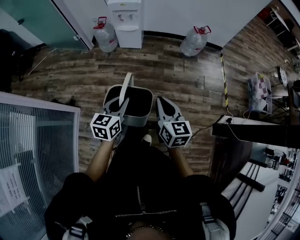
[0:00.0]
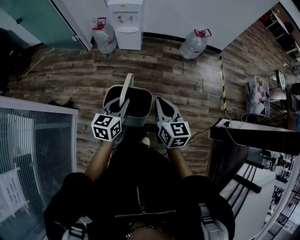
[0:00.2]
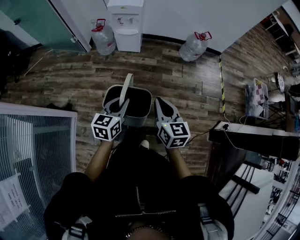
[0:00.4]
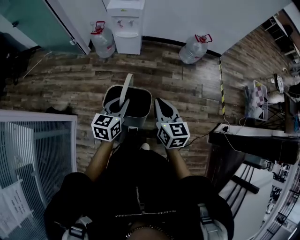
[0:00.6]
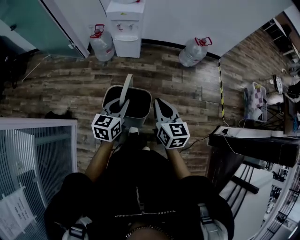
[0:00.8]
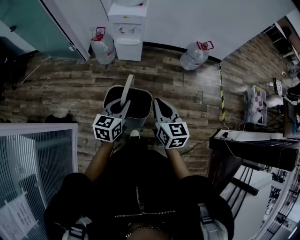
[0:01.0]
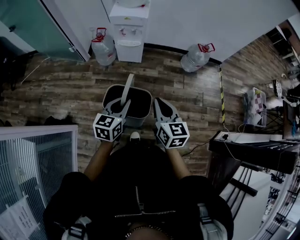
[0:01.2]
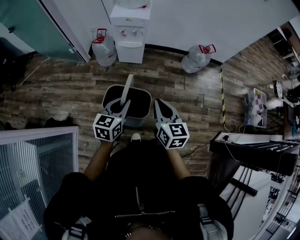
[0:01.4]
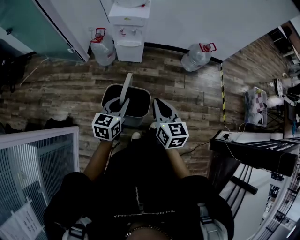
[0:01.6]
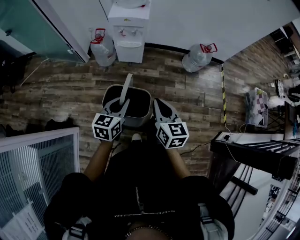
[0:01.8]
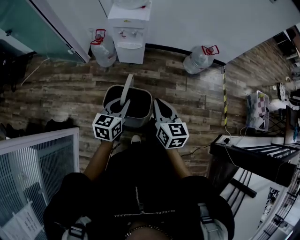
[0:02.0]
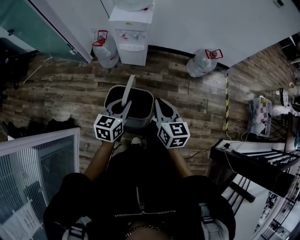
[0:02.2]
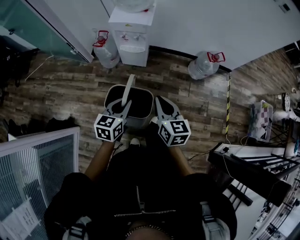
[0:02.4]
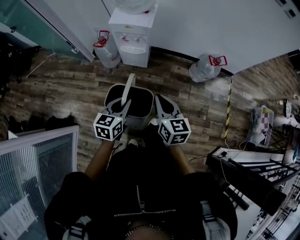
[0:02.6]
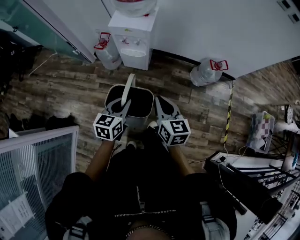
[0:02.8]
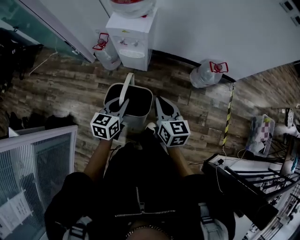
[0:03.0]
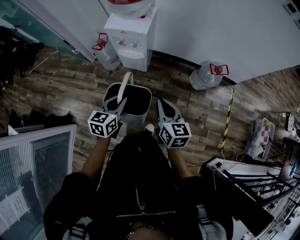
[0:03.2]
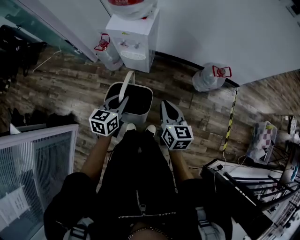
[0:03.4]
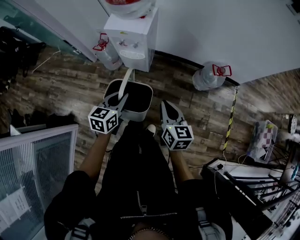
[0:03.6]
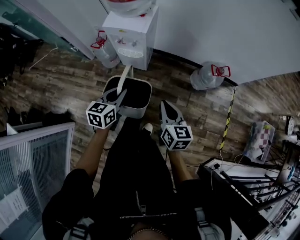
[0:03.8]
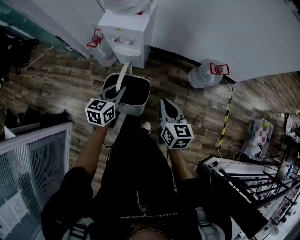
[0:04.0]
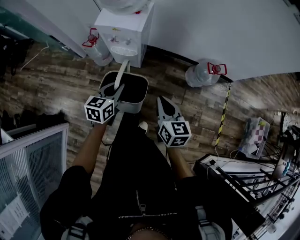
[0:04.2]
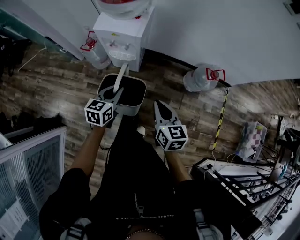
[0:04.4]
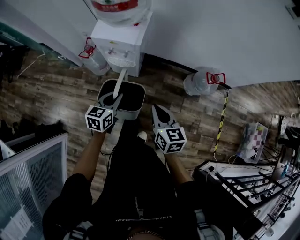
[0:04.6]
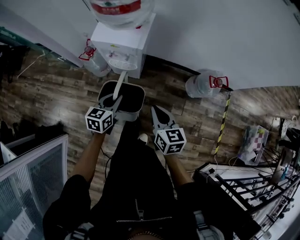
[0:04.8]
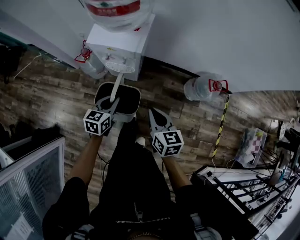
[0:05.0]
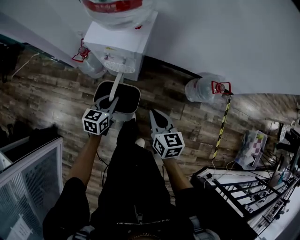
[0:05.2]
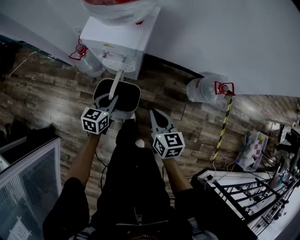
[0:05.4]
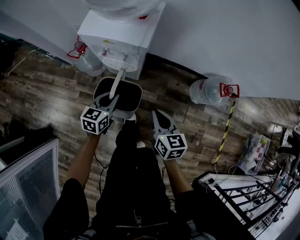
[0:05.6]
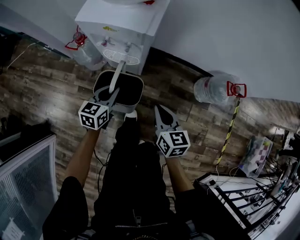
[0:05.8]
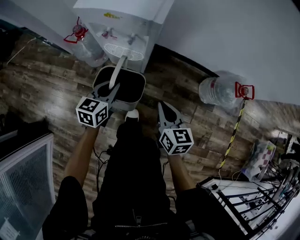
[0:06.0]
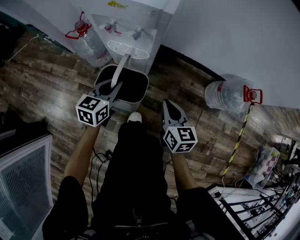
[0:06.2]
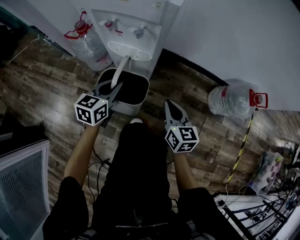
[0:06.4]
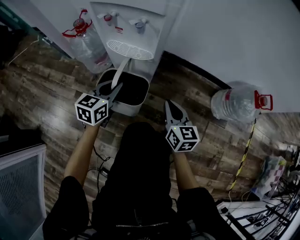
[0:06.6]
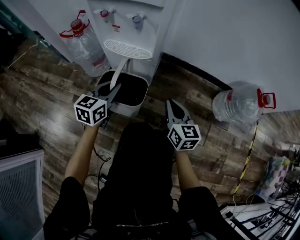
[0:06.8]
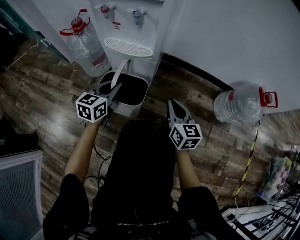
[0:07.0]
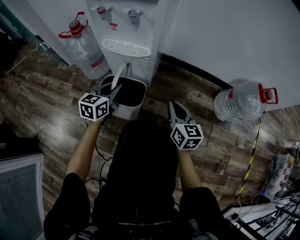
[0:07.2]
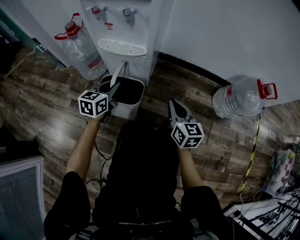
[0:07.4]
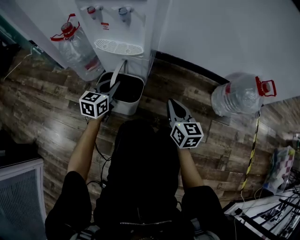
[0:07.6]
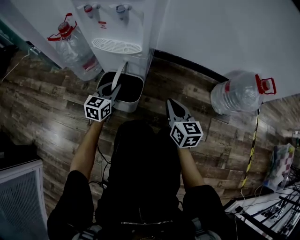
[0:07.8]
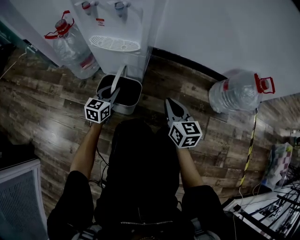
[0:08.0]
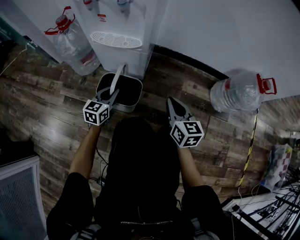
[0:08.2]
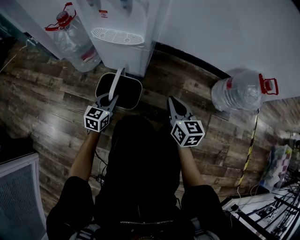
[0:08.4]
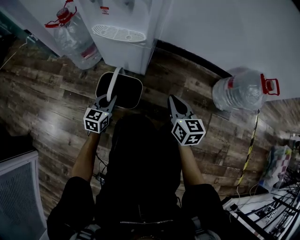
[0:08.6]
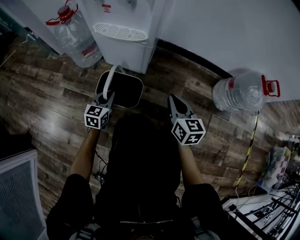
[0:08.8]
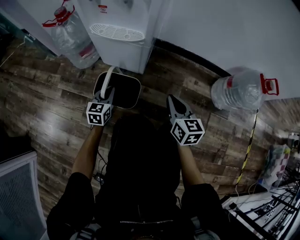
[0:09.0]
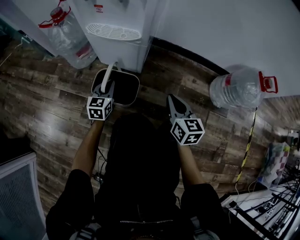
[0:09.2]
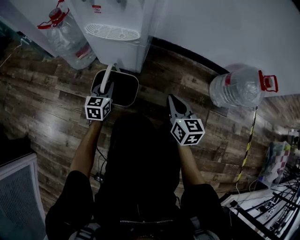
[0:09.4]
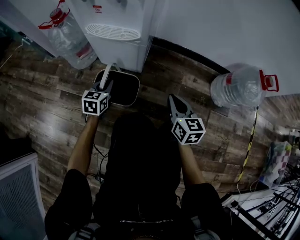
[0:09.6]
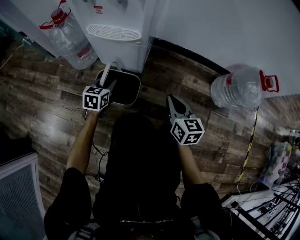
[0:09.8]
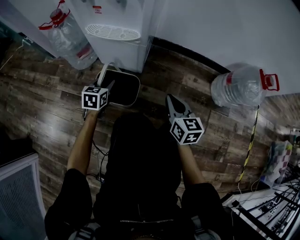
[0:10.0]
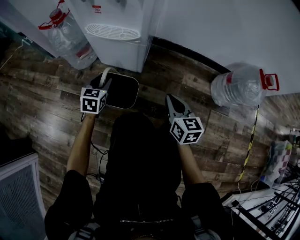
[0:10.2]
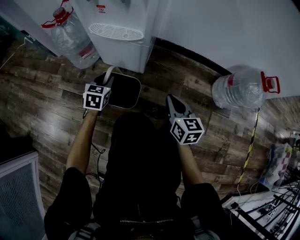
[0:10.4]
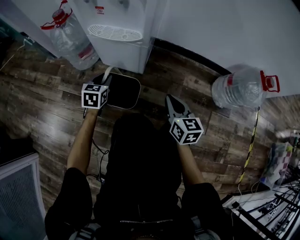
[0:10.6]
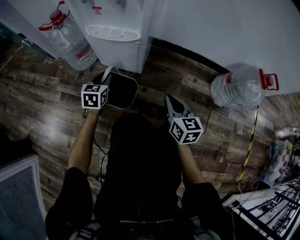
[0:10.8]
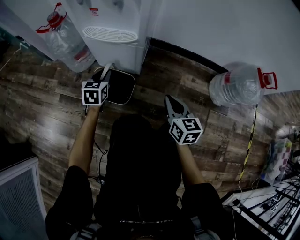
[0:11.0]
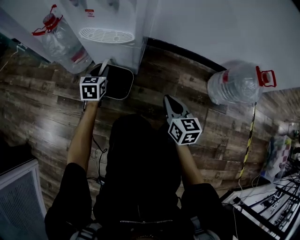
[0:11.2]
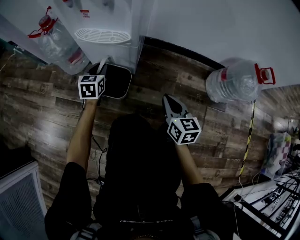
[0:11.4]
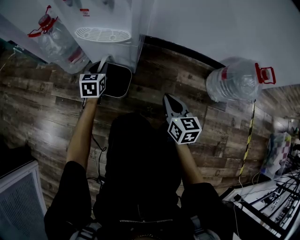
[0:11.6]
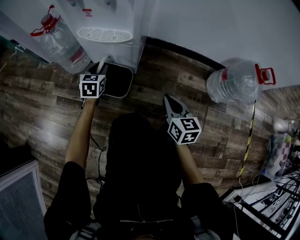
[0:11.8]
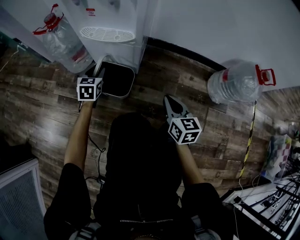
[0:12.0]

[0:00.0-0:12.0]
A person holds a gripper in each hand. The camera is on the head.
0:00.0 to 0:01.6: The grippers both shift forward and to the left by about 25 cm.
0:01.6 to 0:03.0: Both grippers travel together forward and to the right, approximately 20 cm.
0:03.0 to 0:04.4: The left gripper goes some 15 cm forward and downward. Meanwhile the right gripper heads forward, covering approximately 10 cm.
0:04.4 to 0:06.0: The two grippers go approximately 30 cm downward and forward.
0:06.0 to 0:07.6: Both grippers travel together downward, some 25 cm.
0:07.6 to 0:09.0: The left gripper goes some 10 cm downward.
0:09.0 to 0:10.4: The left gripper changes place by roughly 5 cm, and opens.
0:10.4 to 0:12.0: The left gripper is displaced forward by some 5 cm.

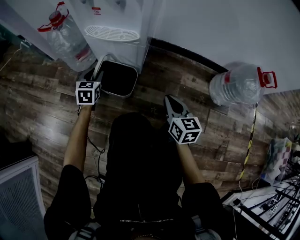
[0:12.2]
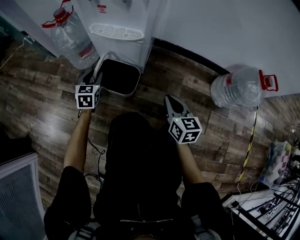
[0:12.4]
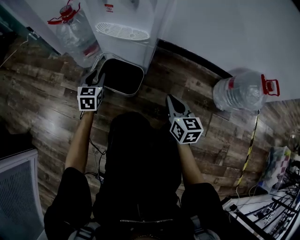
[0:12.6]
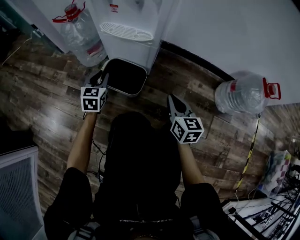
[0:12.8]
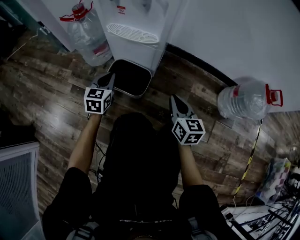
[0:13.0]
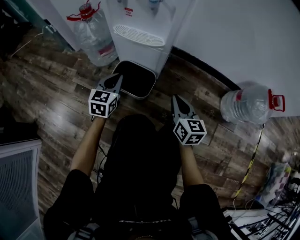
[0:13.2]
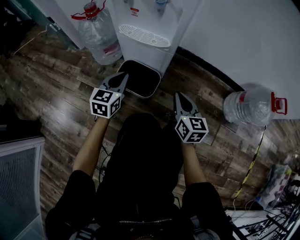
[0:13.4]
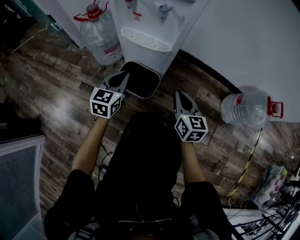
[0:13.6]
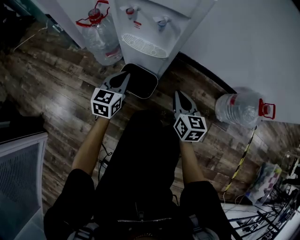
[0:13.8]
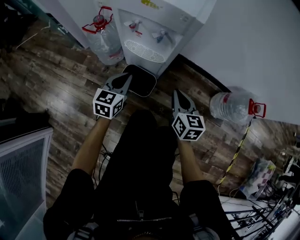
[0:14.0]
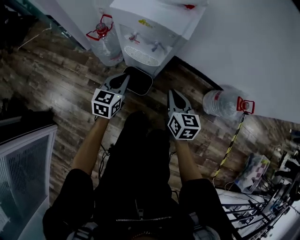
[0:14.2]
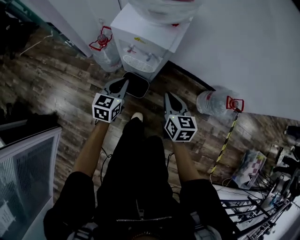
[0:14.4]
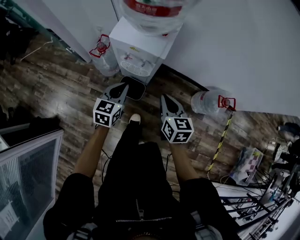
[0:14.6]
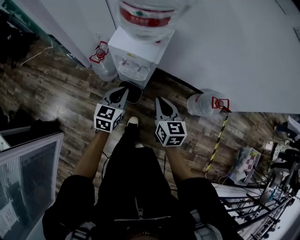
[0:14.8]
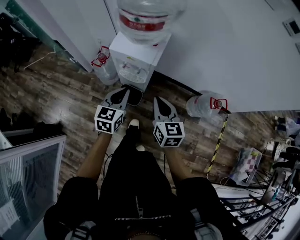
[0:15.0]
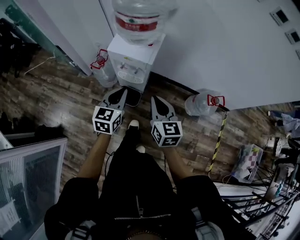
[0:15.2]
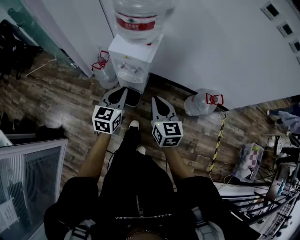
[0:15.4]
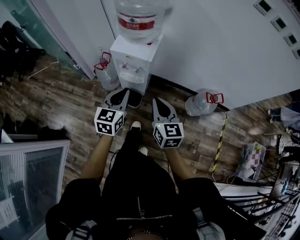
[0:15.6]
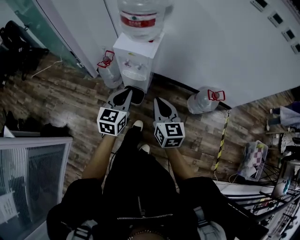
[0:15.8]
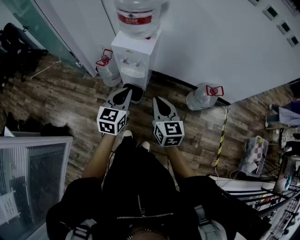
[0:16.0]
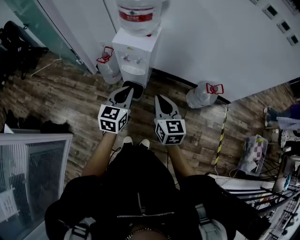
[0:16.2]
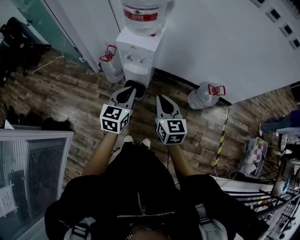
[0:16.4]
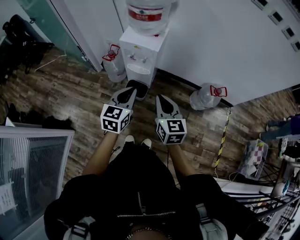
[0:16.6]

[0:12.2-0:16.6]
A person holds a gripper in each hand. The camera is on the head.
0:12.2 to 0:13.6: The left gripper travels upward and backward by some 15 cm, and closes up. Meanwhile the right gripper is displaced upward, forward and to the left by about 10 cm.
0:13.6 to 0:15.2: The grippers both shift upward by about 50 cm.
0:15.2 to 0:16.6: The grippers both shift backward by roughly 15 cm.

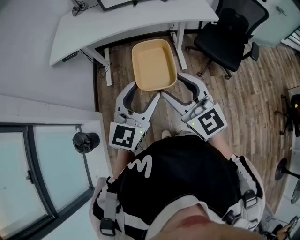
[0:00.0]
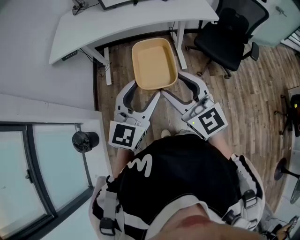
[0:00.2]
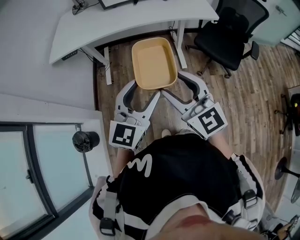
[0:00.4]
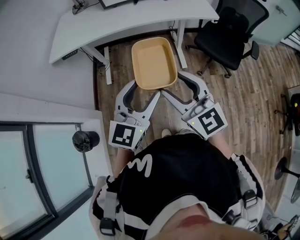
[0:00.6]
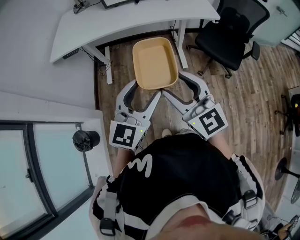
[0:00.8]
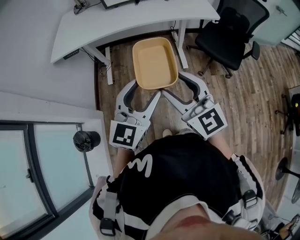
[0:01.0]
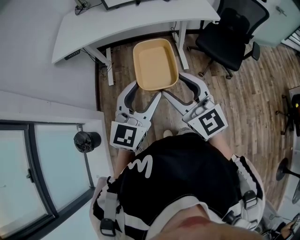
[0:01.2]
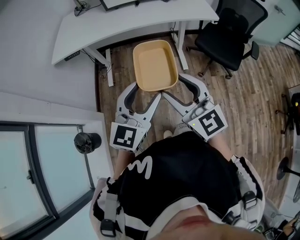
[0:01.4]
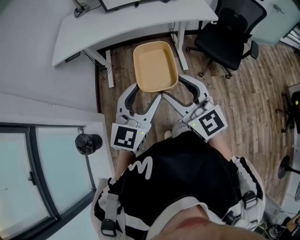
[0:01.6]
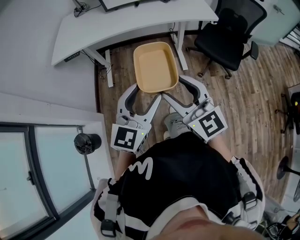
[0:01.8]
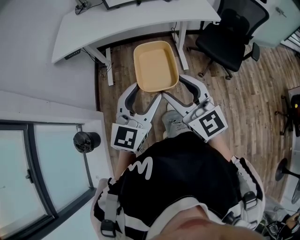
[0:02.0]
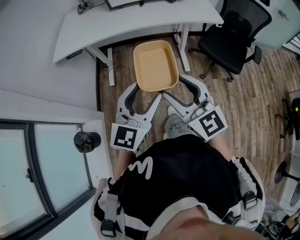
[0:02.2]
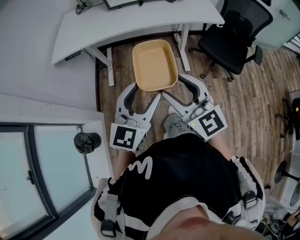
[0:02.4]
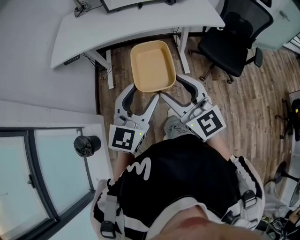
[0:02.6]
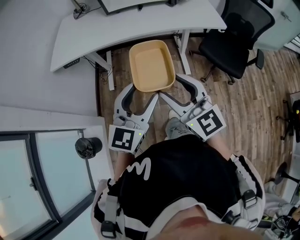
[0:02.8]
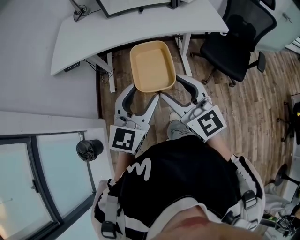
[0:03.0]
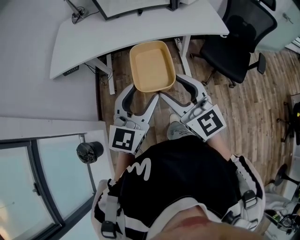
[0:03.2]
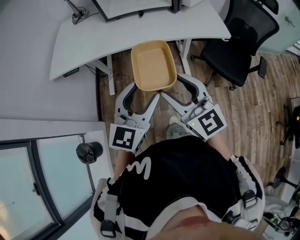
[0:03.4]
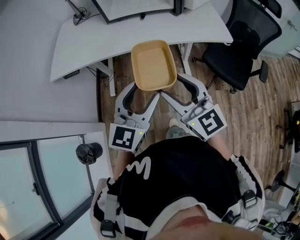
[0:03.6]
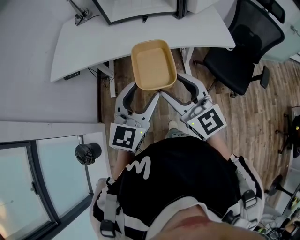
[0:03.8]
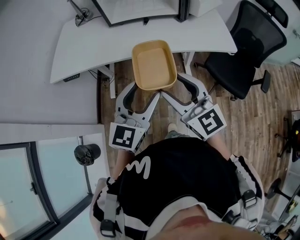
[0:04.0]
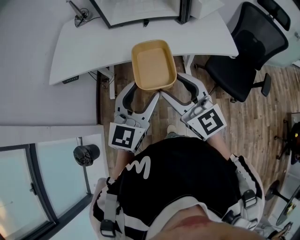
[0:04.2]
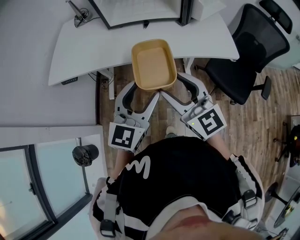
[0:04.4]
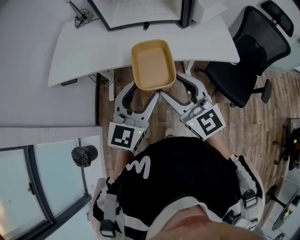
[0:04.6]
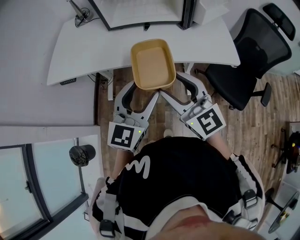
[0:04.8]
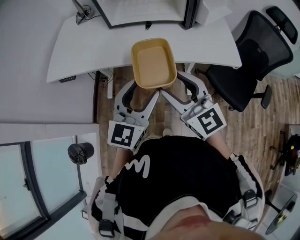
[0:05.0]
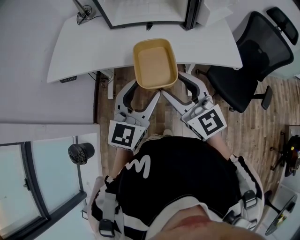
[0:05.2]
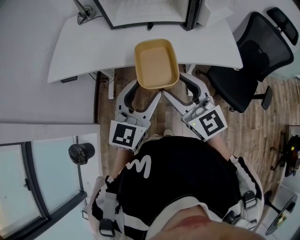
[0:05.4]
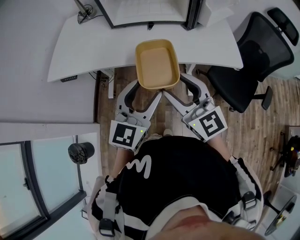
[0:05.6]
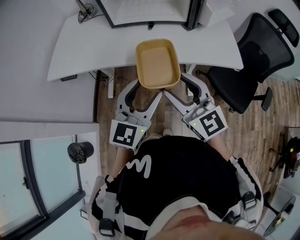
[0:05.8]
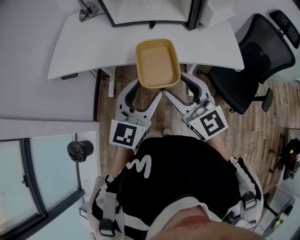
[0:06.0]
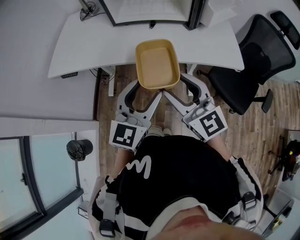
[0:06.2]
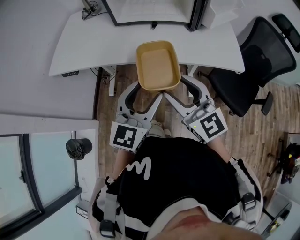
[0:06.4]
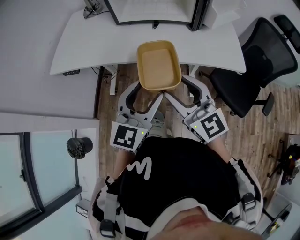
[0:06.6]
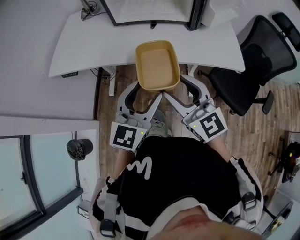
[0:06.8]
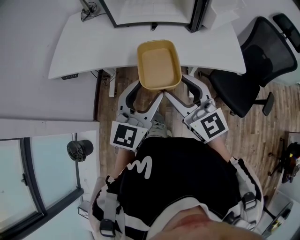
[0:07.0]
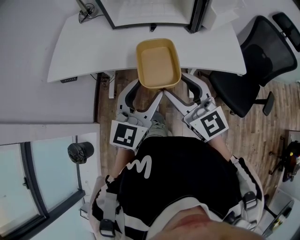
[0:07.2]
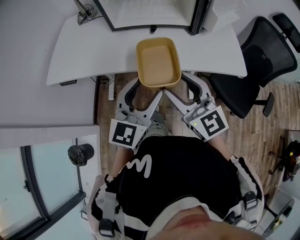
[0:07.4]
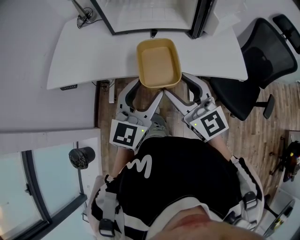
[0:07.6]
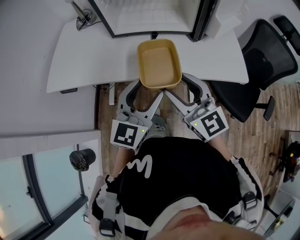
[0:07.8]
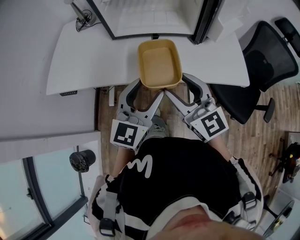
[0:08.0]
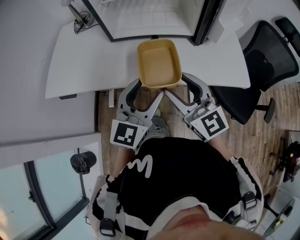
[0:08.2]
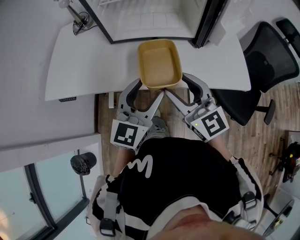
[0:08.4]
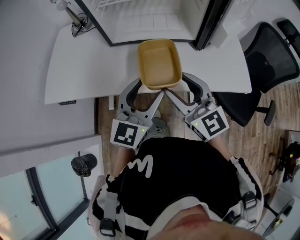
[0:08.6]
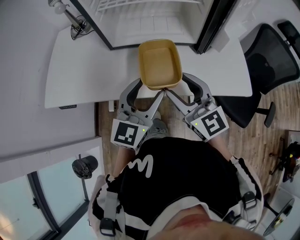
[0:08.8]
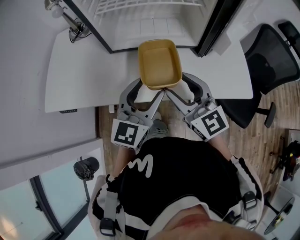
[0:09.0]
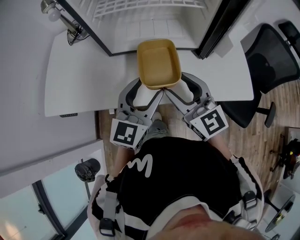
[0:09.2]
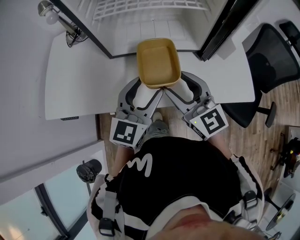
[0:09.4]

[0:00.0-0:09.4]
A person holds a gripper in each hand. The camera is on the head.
0:00.0 to 0:01.6: There are only small adjustments of the grippers.
0:01.6 to 0:03.2: Both grippers travel together forward, some 15 cm.
0:03.2 to 0:04.8: The two grippers go approximately 15 cm forward.
0:04.8 to 0:06.2: Both grippers stay about where they are.
0:06.2 to 0:07.8: Both grippers travel together forward, approximately 10 cm.
0:07.8 to 0:09.4: Both grippers travel together forward, approximately 15 cm.
